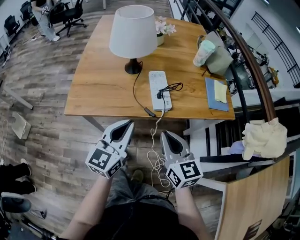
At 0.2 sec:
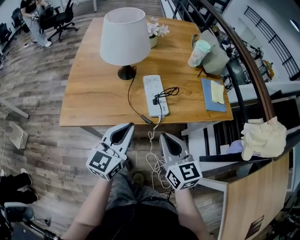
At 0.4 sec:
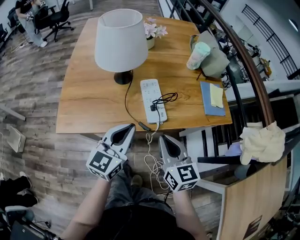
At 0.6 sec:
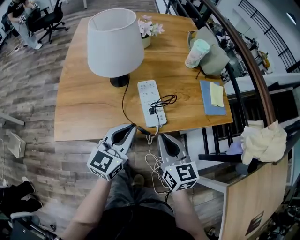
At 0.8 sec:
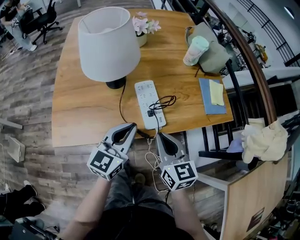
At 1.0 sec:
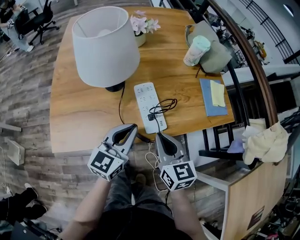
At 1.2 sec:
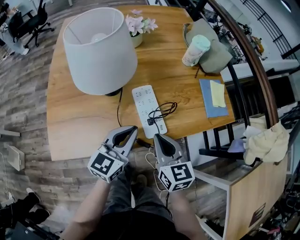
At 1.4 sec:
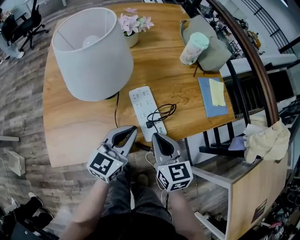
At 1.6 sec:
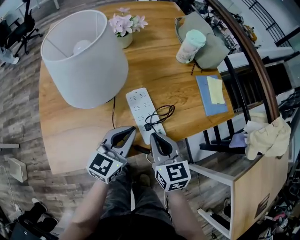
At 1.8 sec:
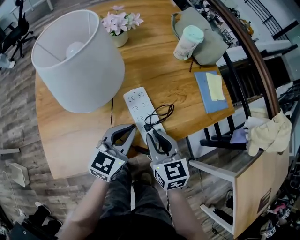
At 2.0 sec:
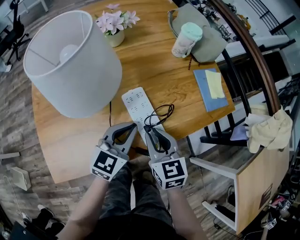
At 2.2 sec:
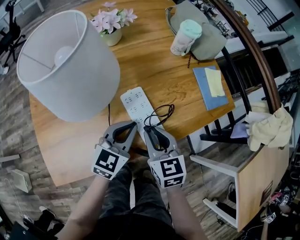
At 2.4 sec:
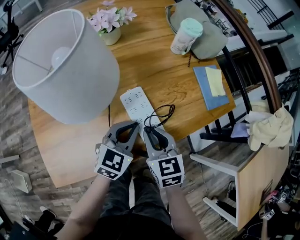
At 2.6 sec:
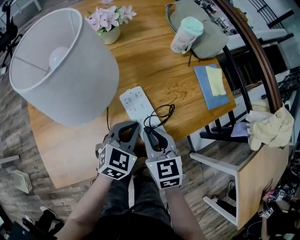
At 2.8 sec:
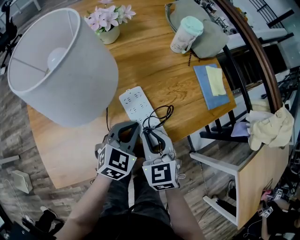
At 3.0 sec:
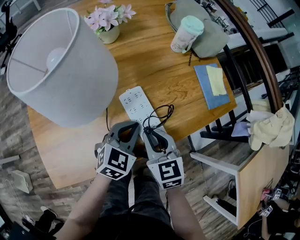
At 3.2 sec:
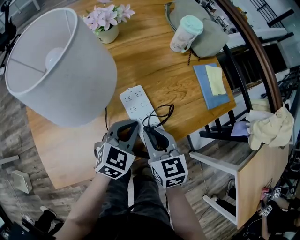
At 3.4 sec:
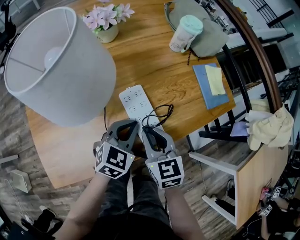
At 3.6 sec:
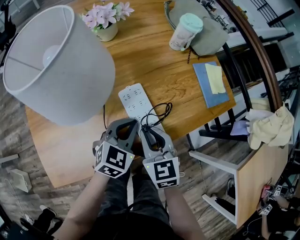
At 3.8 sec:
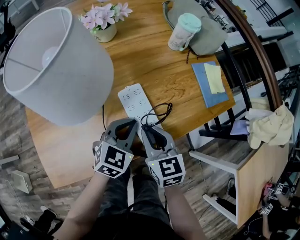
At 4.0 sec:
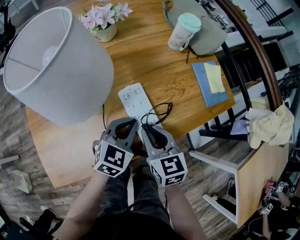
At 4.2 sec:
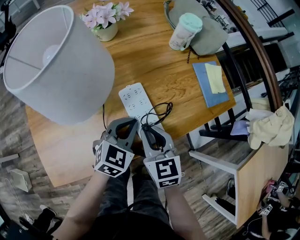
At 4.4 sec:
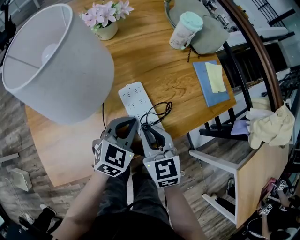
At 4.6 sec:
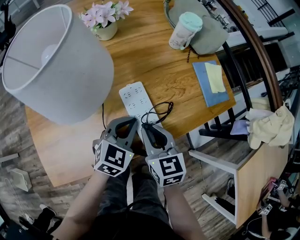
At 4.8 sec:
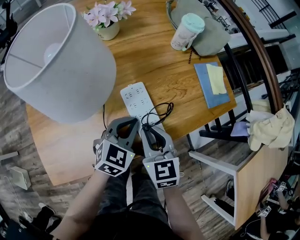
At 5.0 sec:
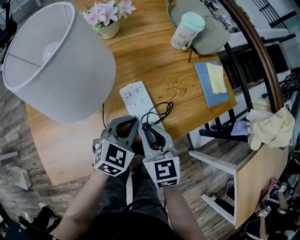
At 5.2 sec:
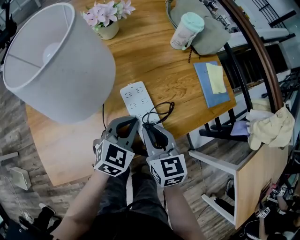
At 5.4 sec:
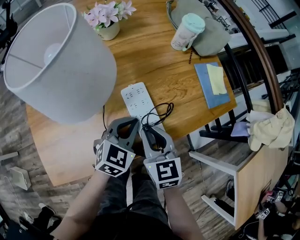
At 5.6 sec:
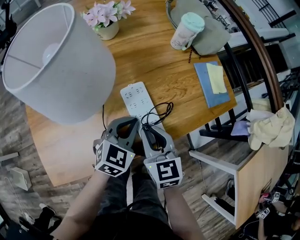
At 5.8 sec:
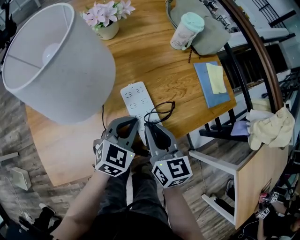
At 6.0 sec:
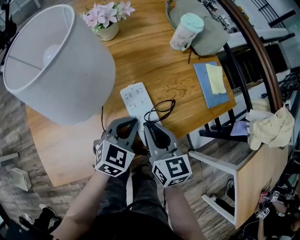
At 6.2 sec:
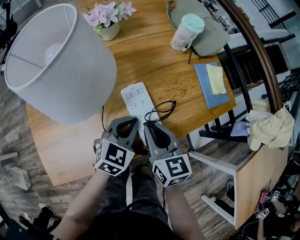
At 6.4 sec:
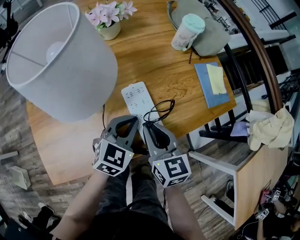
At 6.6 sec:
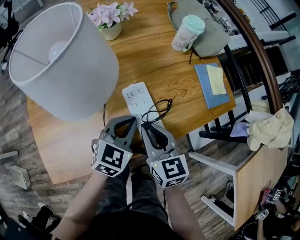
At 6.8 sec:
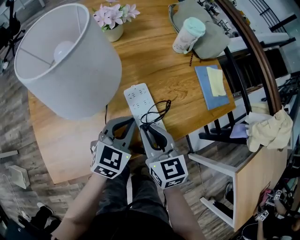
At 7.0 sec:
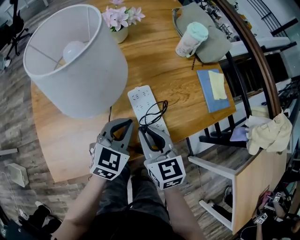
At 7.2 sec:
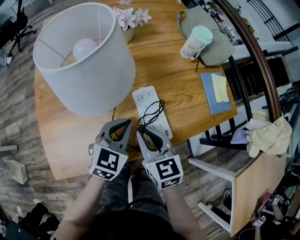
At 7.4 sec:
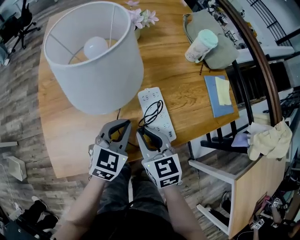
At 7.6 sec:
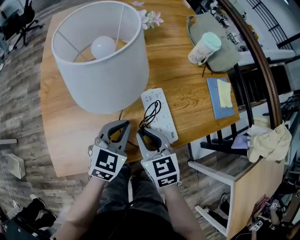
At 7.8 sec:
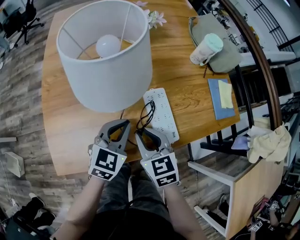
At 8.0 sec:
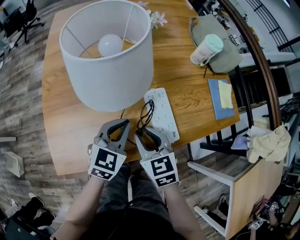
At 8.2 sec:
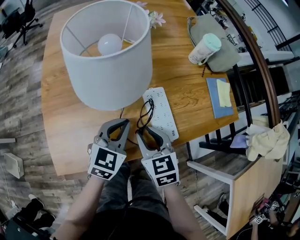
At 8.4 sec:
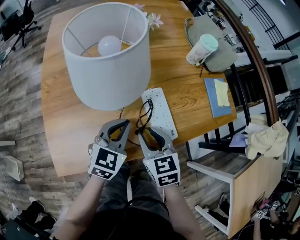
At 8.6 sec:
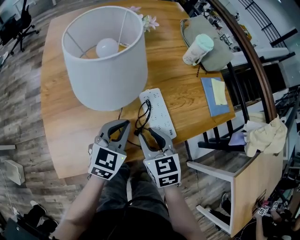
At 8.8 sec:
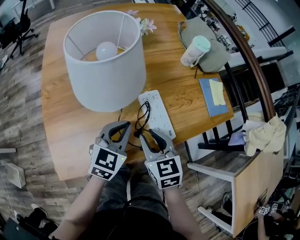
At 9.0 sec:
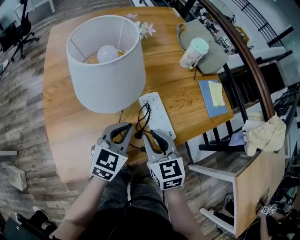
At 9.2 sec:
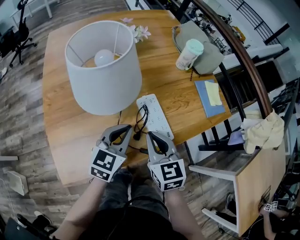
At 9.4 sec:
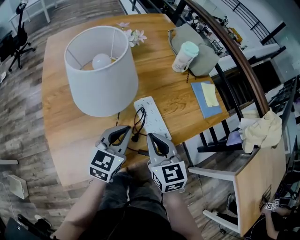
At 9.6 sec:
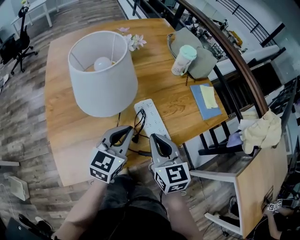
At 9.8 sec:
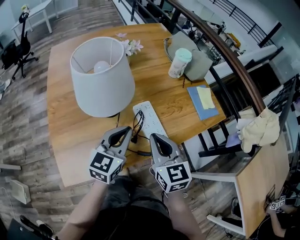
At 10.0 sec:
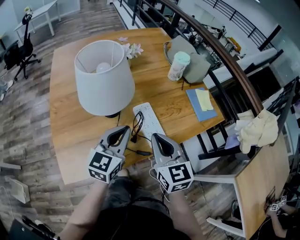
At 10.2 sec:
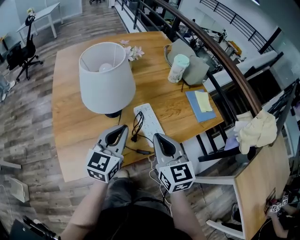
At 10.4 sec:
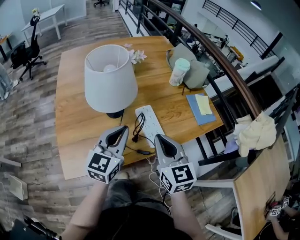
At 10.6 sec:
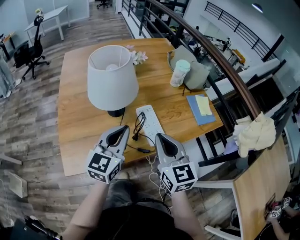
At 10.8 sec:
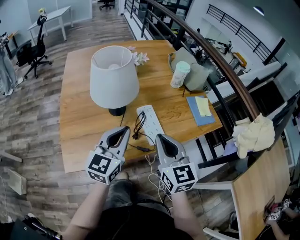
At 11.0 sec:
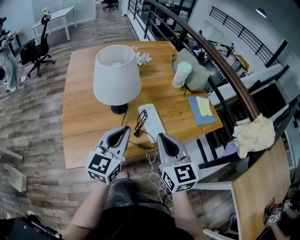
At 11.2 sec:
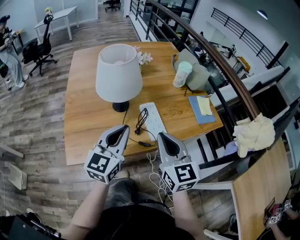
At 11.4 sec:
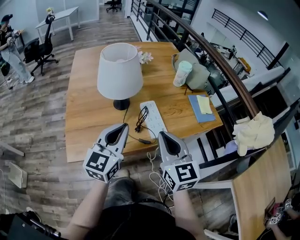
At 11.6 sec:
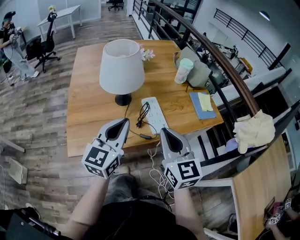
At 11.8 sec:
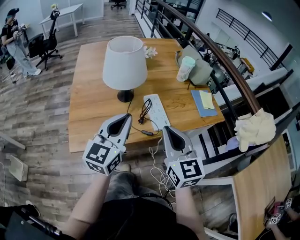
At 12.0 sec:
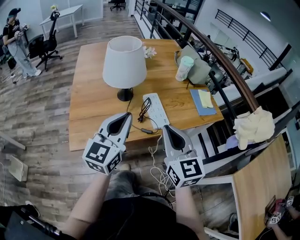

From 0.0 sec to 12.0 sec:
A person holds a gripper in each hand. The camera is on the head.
From 0.0 sec to 1.6 sec: The left gripper moves forward, roughly 15 cm, and turns by approximately 20 degrees. Meanwhile the right gripper moves forward and downward, about 15 cm, and rotates about 20 degrees.
From 1.6 sec to 3.0 sec: The left gripper is displaced downward by approximately 5 cm, and swivels about 30 degrees.
From 3.0 sec to 6.0 sec: The grippers stay close to where they were, moving slightly.
From 6.0 sec to 7.6 sec: Both grippers move to the left, roughly 10 cm. The right gripper changes its angle by about 20 degrees.
From 7.6 sec to 9.0 sec: The grippers stay close to where they were, moving slightly.
From 9.0 sec to 10.4 sec: Both grippers move upward, about 10 cm.
From 10.4 sec to 12.0 sec: Both grippers move backward and upward, about 10 cm.

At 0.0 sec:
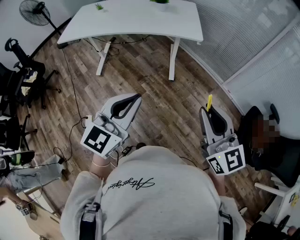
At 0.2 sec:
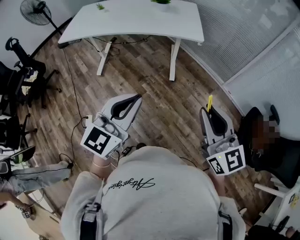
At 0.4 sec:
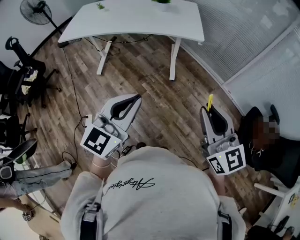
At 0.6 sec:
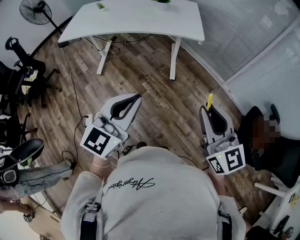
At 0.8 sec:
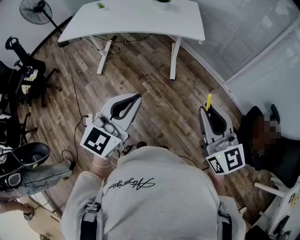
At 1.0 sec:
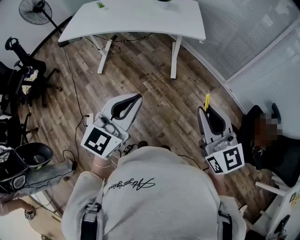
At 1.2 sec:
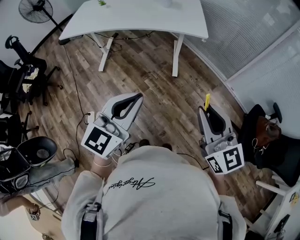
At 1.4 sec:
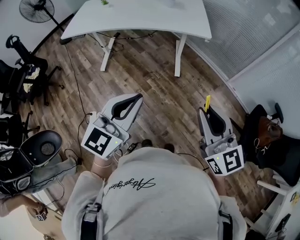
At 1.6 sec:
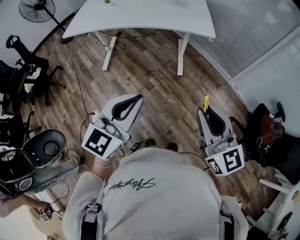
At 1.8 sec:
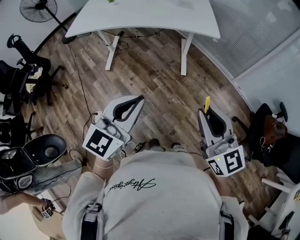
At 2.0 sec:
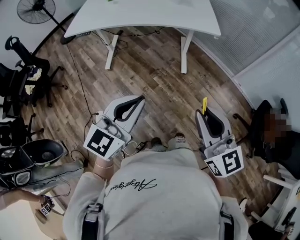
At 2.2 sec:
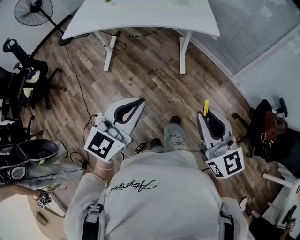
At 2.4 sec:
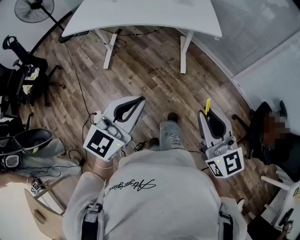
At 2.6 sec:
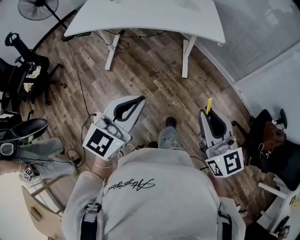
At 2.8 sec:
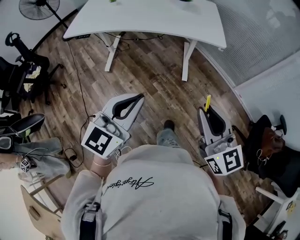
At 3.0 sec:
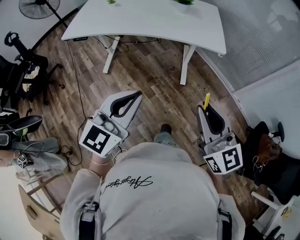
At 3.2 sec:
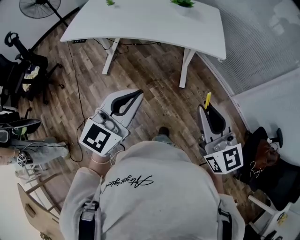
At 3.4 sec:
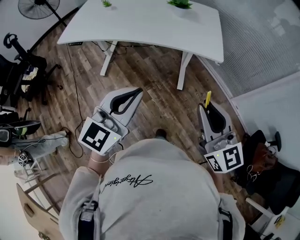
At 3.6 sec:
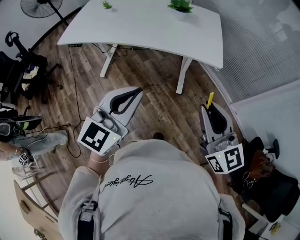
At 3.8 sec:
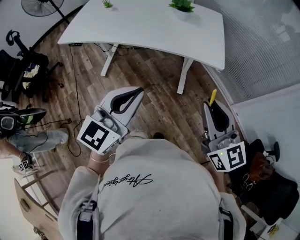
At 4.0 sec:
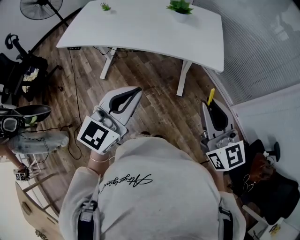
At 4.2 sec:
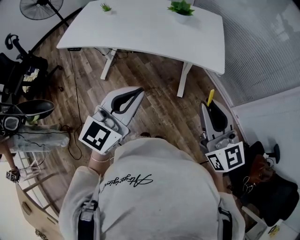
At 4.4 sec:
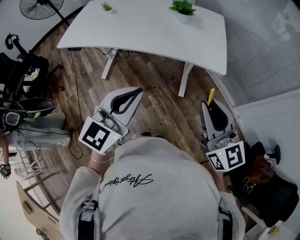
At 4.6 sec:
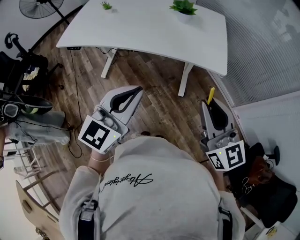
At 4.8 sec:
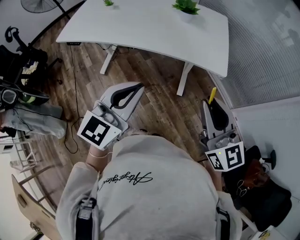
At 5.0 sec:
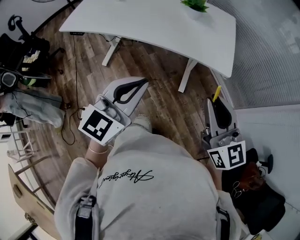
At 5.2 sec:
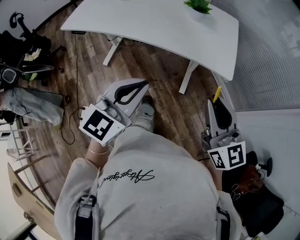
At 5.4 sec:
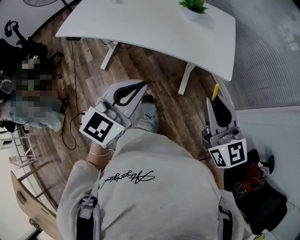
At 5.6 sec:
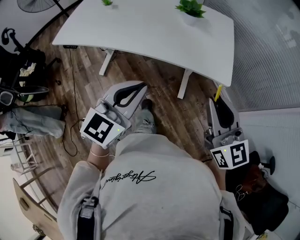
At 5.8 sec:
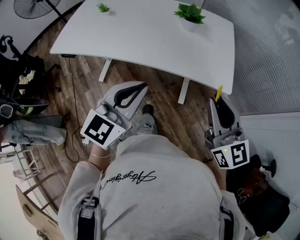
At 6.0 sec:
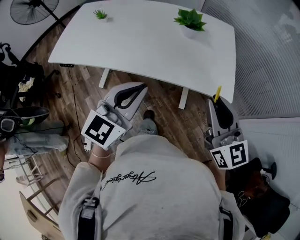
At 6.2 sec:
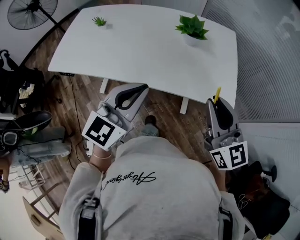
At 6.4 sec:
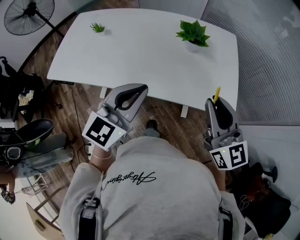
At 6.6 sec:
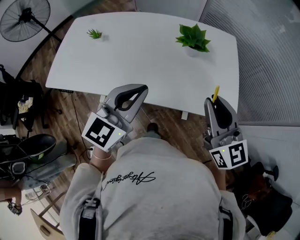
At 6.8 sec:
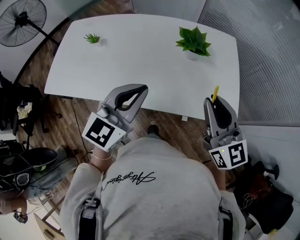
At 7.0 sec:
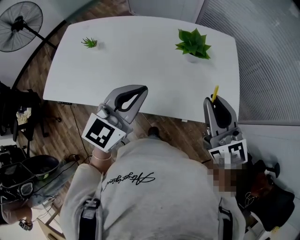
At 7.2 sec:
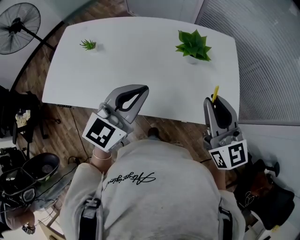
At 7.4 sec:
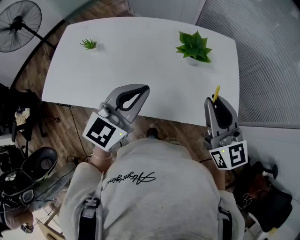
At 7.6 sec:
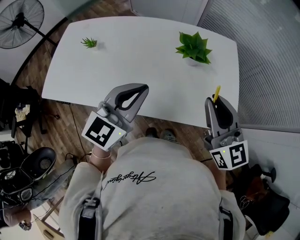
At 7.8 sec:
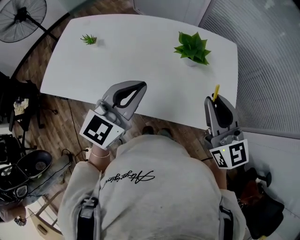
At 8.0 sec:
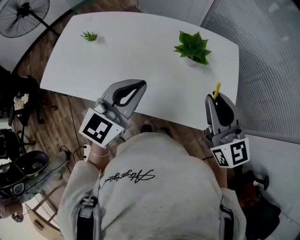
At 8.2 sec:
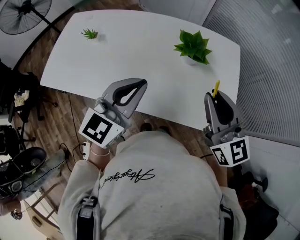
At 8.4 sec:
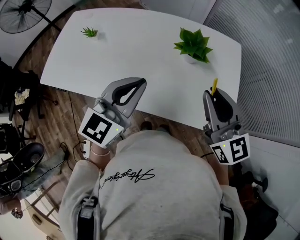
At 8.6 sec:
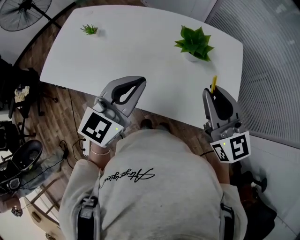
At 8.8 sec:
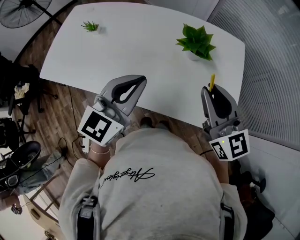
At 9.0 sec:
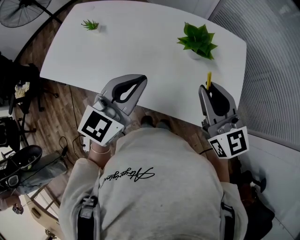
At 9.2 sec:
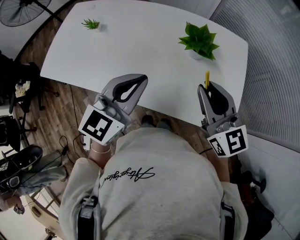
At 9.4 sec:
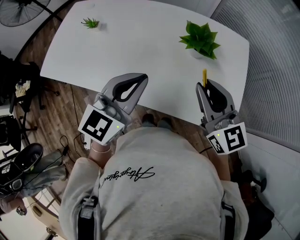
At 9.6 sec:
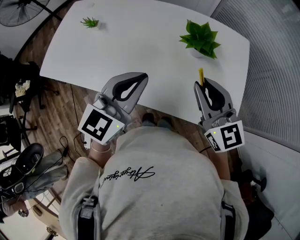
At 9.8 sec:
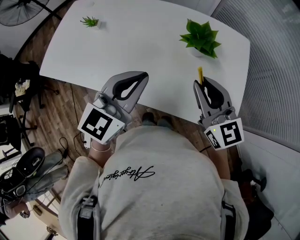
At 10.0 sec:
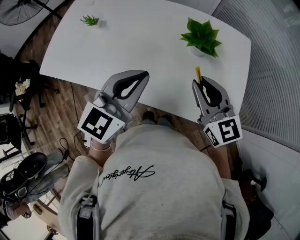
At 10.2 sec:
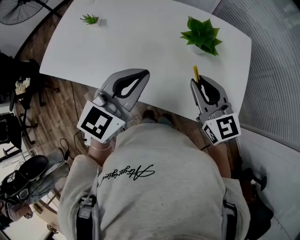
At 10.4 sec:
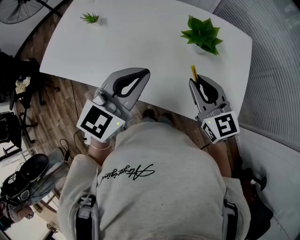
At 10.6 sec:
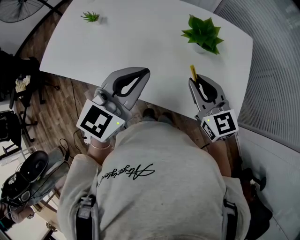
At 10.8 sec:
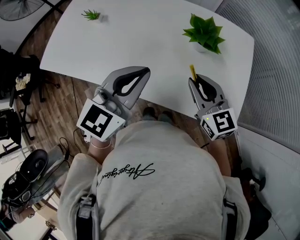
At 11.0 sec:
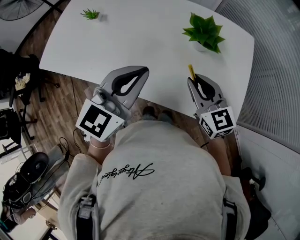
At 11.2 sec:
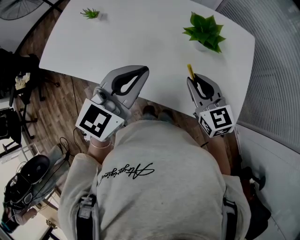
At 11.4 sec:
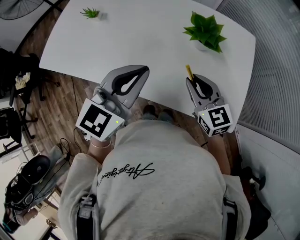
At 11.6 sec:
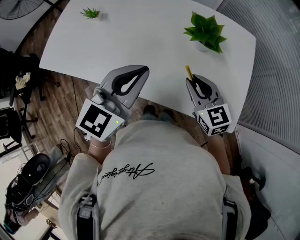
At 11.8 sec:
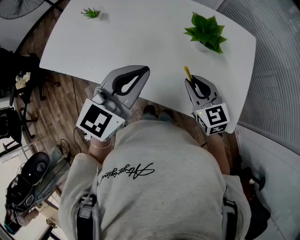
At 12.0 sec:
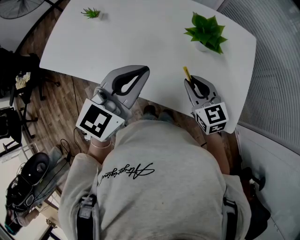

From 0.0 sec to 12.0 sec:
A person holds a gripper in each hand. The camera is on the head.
From 0.0 sec to 1.6 sec: Both grippers travel together to the left, approximately 10 cm.
From 1.6 sec to 3.0 sec: The two grippers go about 15 cm forward.
From 3.0 sec to 4.4 sec: The two grippers go about 15 cm forward and to the right.
From 4.4 sec to 6.0 sec: Both grippers move forward, roughly 20 cm.
From 6.0 sec to 7.6 sec: The right gripper moves forward and to the left, some 20 cm; the left gripper moves forward, roughly 20 cm.
From 7.6 sec to 9.0 sec: The grippers move only a little.
From 9.0 sec to 10.4 sec: The right gripper travels downward by roughly 10 cm.
From 10.4 sec to 12.0 sec: The right gripper is displaced downward by some 10 cm.
